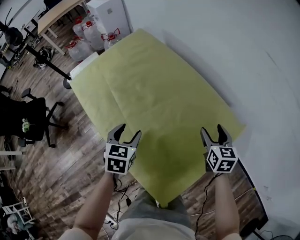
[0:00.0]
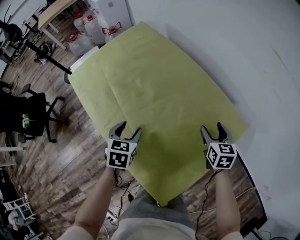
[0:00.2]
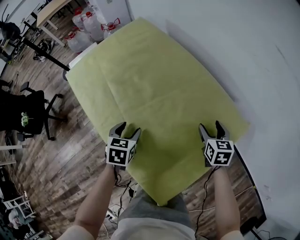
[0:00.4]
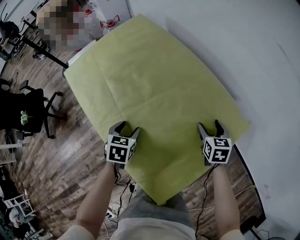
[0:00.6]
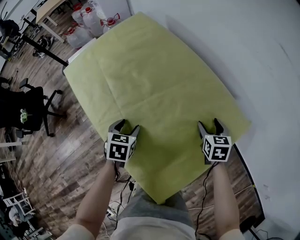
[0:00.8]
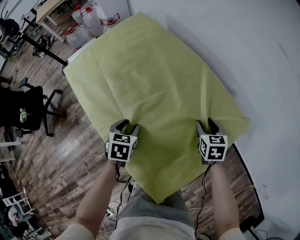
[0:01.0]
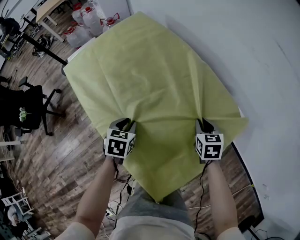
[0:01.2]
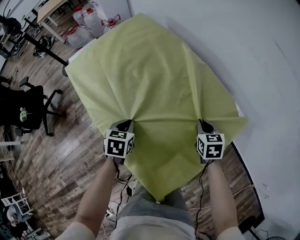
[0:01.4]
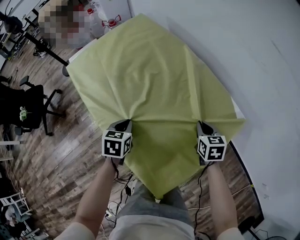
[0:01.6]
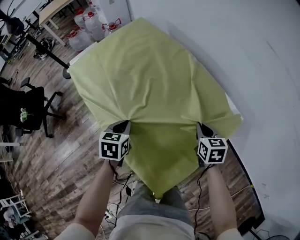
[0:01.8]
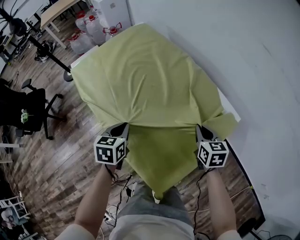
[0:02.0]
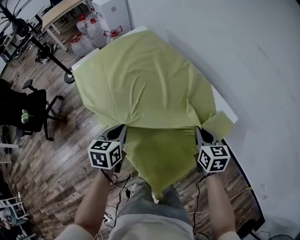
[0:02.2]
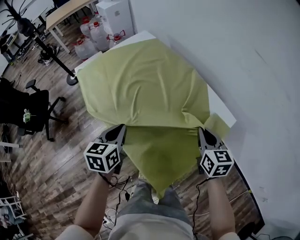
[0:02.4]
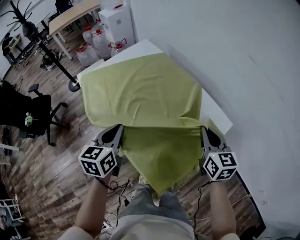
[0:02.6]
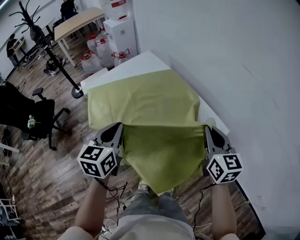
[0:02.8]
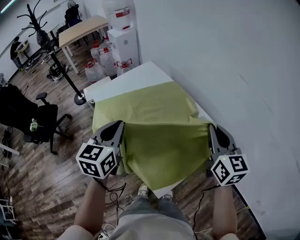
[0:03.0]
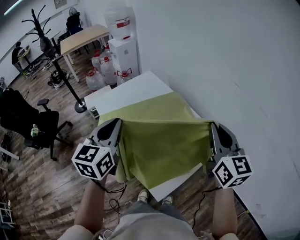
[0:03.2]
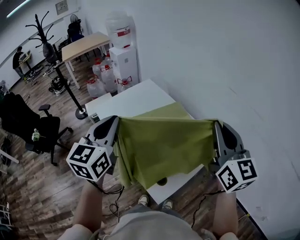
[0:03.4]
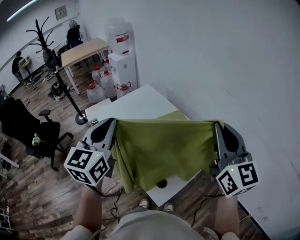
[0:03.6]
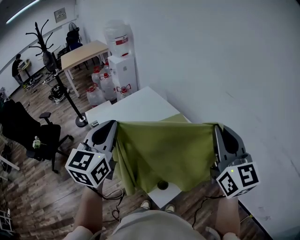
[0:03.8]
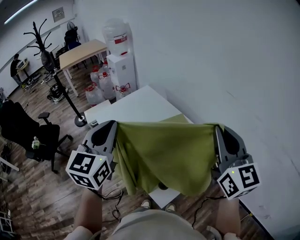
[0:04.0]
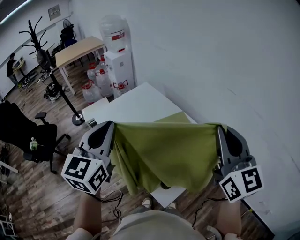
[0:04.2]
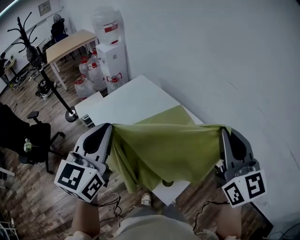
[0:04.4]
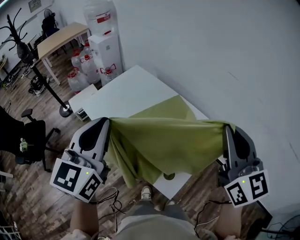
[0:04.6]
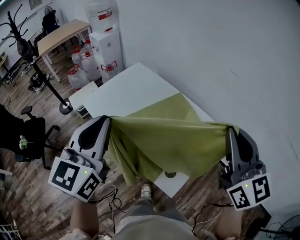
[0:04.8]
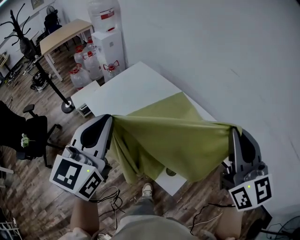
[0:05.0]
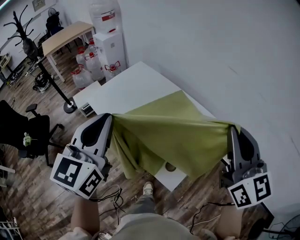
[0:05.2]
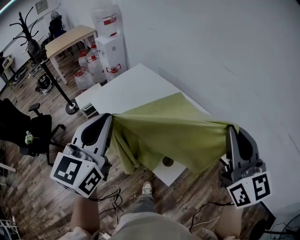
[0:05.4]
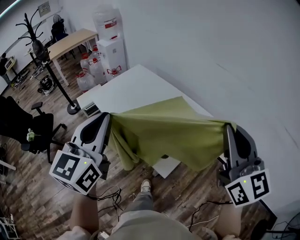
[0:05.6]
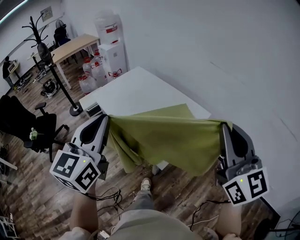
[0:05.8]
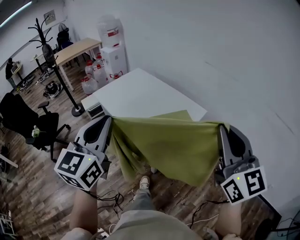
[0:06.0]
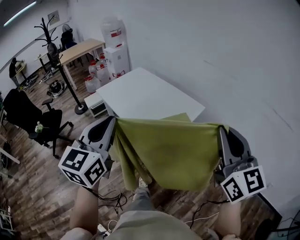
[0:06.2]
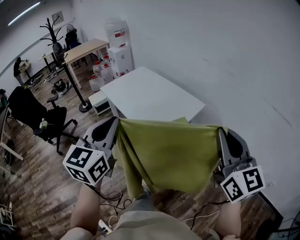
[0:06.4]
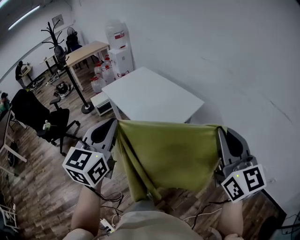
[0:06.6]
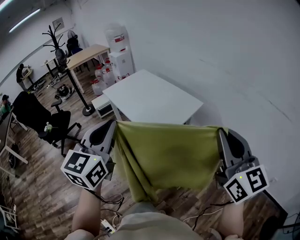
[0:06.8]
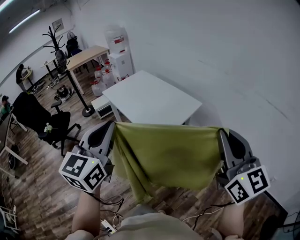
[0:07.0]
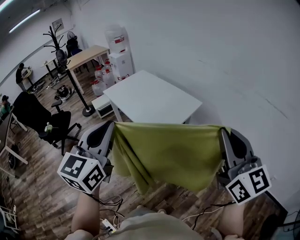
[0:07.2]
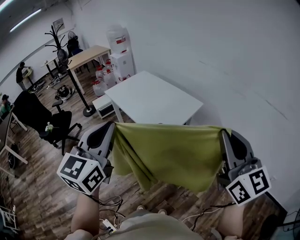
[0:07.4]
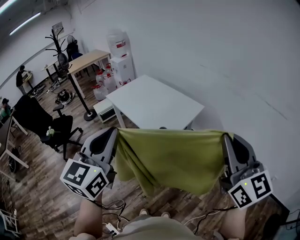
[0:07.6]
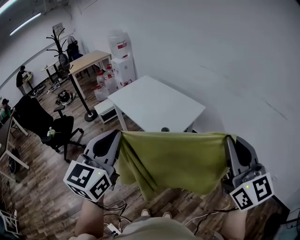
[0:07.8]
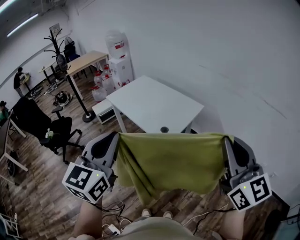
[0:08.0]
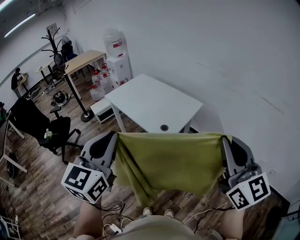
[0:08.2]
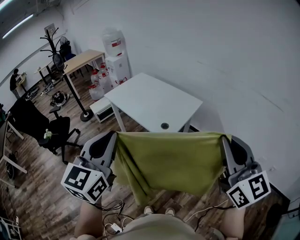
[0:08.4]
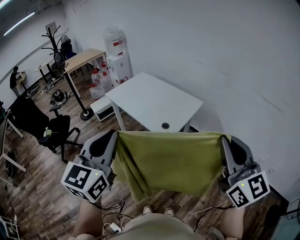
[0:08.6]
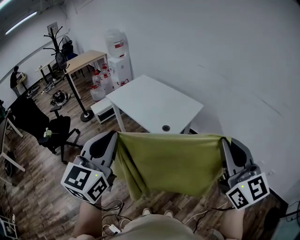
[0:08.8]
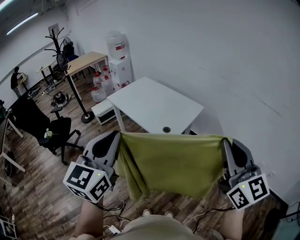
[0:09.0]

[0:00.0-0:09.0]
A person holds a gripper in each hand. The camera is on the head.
0:00.0 to 0:01.6: The two grippers go some 10 cm downward. The left gripper closes up; the right gripper closes.
0:01.6 to 0:03.0: The two grippers go some 35 cm upward. The left gripper tilts its fingers some 30 degrees upward. The right gripper tilts its fingers some 40 degrees upward.
0:03.0 to 0:04.4: The right gripper heads upward, to the left and backward, covering about 20 cm; the left gripper goes approximately 15 cm upward.
0:04.4 to 0:06.0: The two grippers go some 30 cm backward.
0:06.0 to 0:07.6: The grippers both shift backward by about 20 cm.
0:07.6 to 0:09.0: Both grippers travel together to the left, about 5 cm.

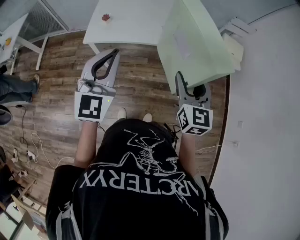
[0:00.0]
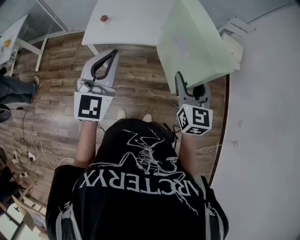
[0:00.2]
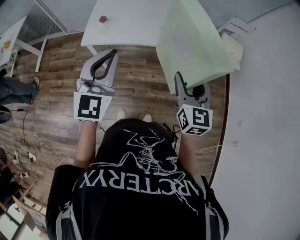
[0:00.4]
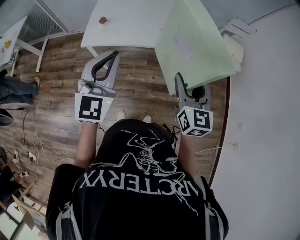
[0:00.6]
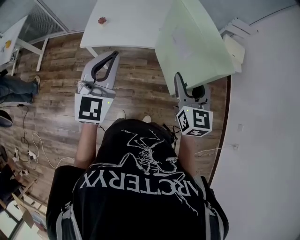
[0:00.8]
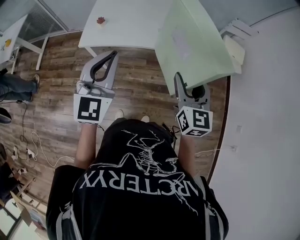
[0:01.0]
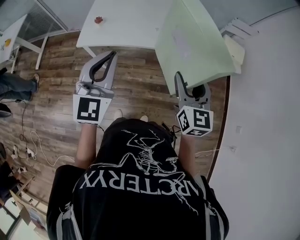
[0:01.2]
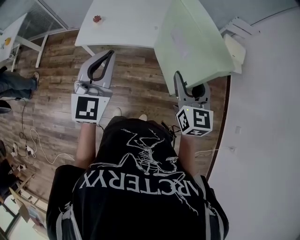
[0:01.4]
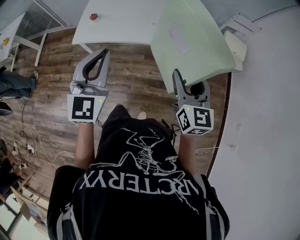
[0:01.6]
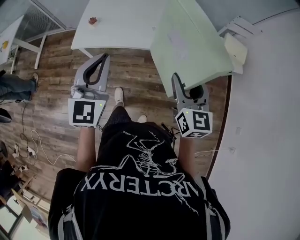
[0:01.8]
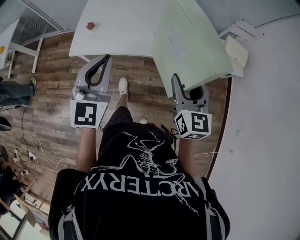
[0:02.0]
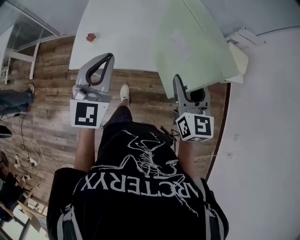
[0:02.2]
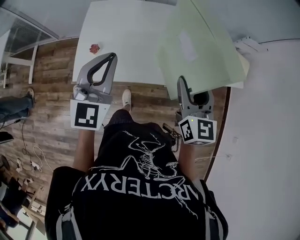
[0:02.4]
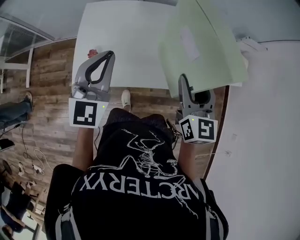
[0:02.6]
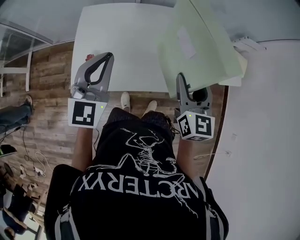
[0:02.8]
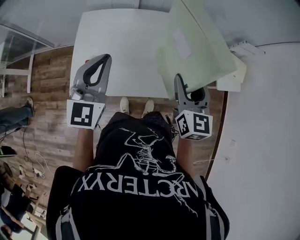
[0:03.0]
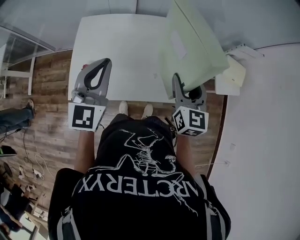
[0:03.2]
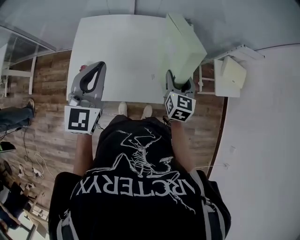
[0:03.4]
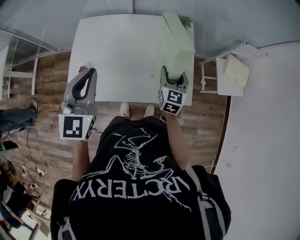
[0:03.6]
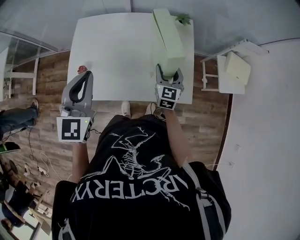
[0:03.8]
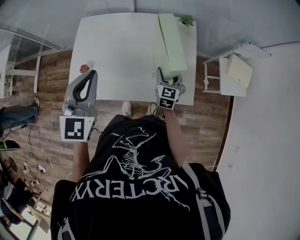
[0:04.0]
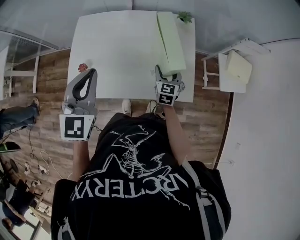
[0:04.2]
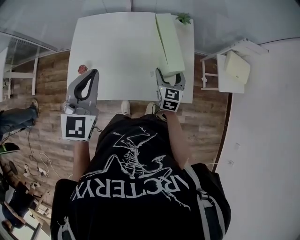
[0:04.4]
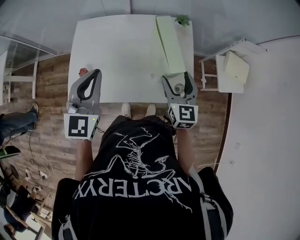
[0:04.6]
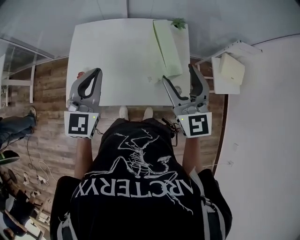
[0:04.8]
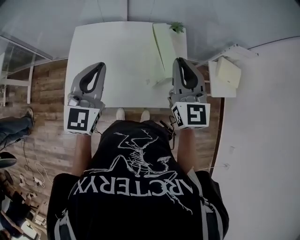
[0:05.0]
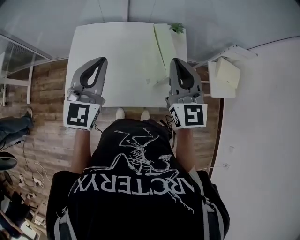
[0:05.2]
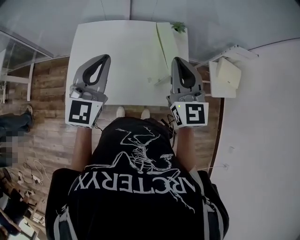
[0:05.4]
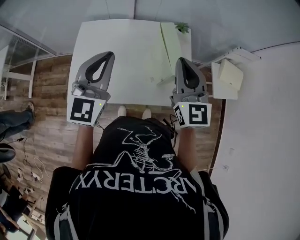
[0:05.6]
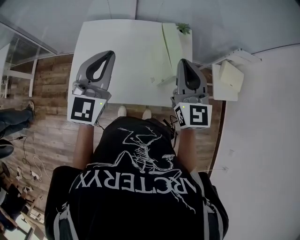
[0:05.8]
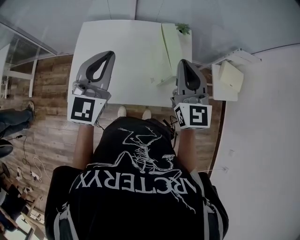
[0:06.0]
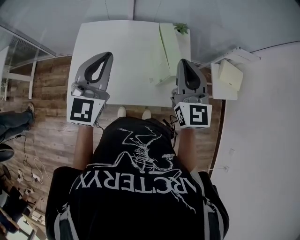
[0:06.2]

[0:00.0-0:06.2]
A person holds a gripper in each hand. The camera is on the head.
0:00.0 to 0:01.6: Both grippers travel together to the right and forward, approximately 10 cm.
0:01.6 to 0:03.2: The grippers both shift forward by some 35 cm.
0:03.2 to 0:04.6: The right gripper goes downward and returns, roughly 20 cm each way.
0:04.6 to 0:06.2: The right gripper travels upward by about 15 cm, and closes its fingers, while the left gripper changes place by some 5 cm.

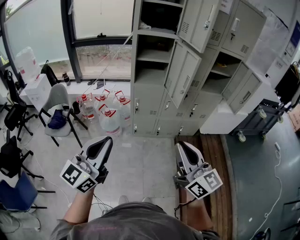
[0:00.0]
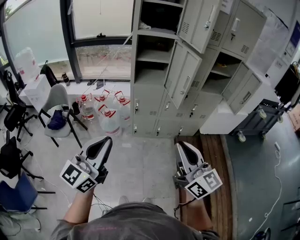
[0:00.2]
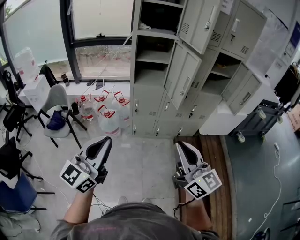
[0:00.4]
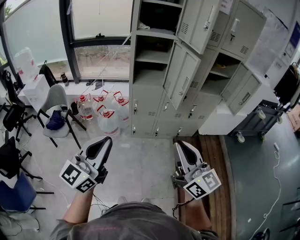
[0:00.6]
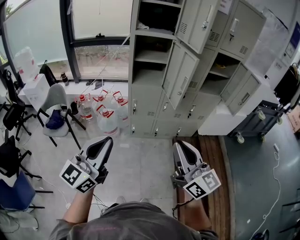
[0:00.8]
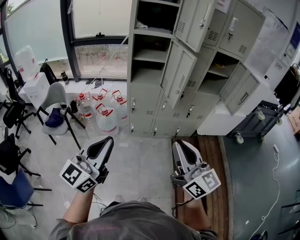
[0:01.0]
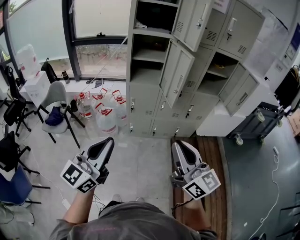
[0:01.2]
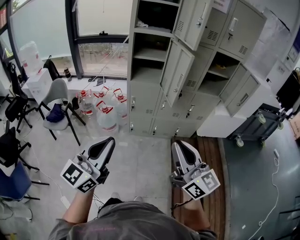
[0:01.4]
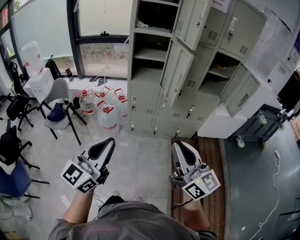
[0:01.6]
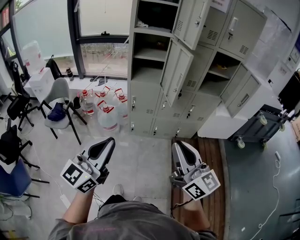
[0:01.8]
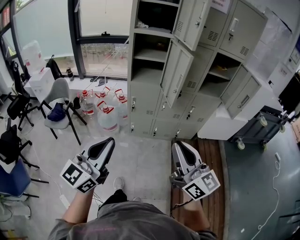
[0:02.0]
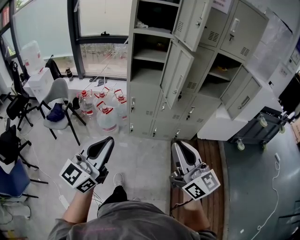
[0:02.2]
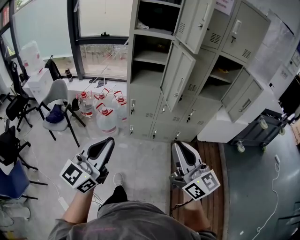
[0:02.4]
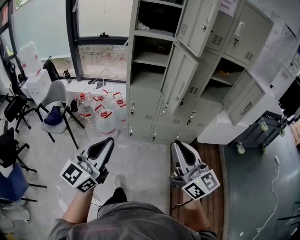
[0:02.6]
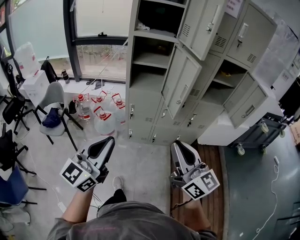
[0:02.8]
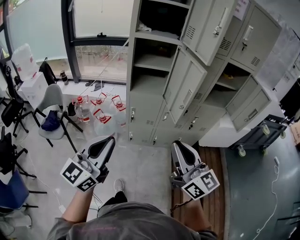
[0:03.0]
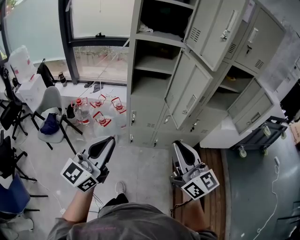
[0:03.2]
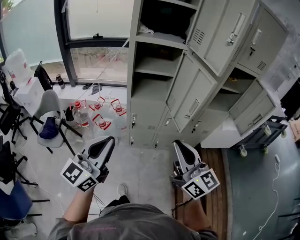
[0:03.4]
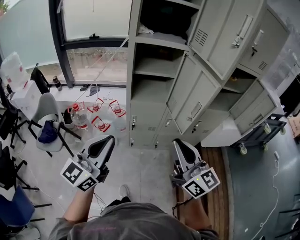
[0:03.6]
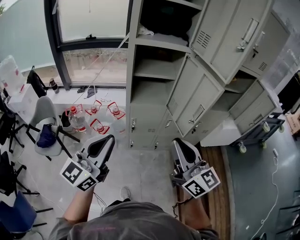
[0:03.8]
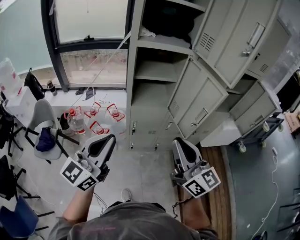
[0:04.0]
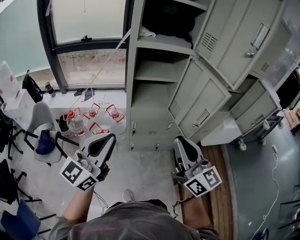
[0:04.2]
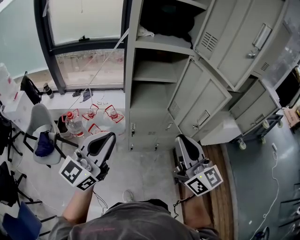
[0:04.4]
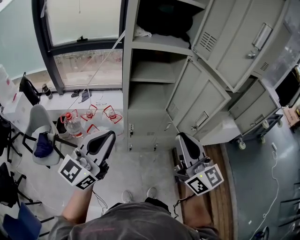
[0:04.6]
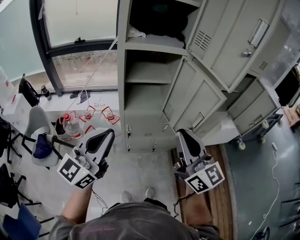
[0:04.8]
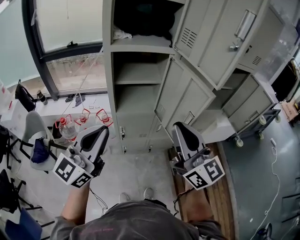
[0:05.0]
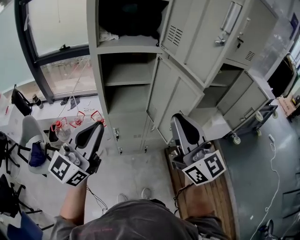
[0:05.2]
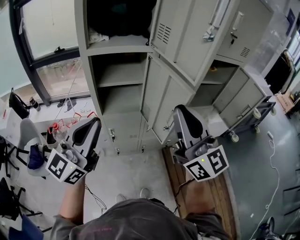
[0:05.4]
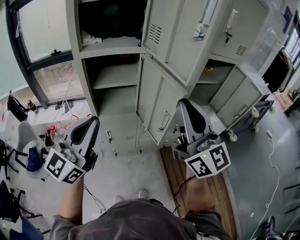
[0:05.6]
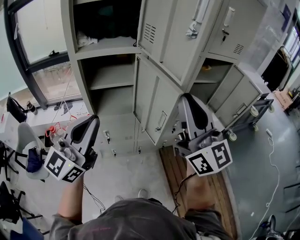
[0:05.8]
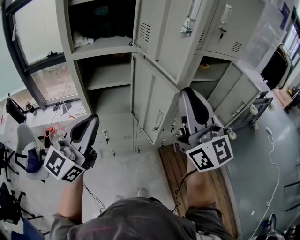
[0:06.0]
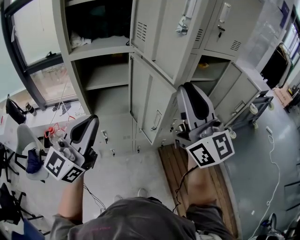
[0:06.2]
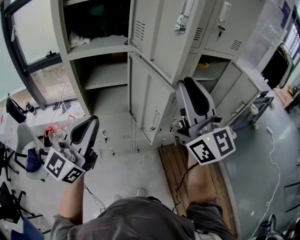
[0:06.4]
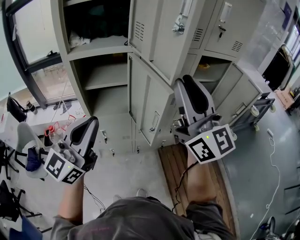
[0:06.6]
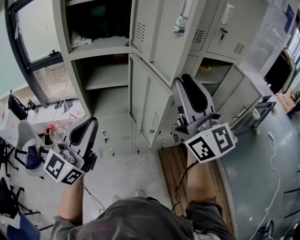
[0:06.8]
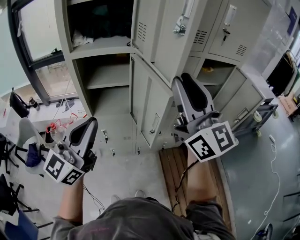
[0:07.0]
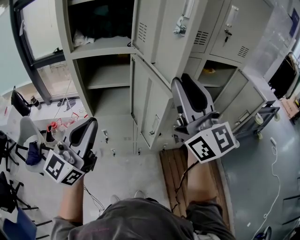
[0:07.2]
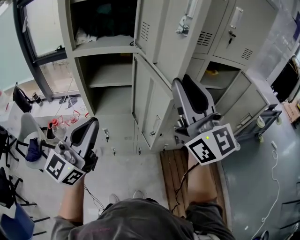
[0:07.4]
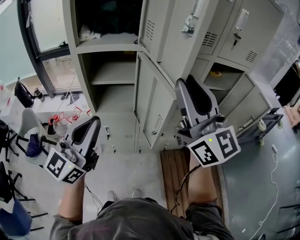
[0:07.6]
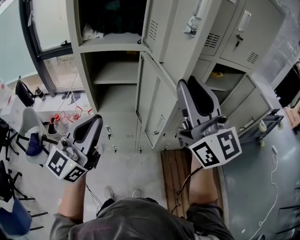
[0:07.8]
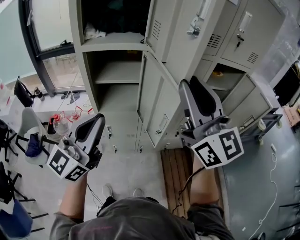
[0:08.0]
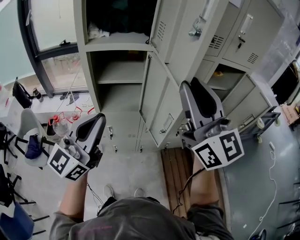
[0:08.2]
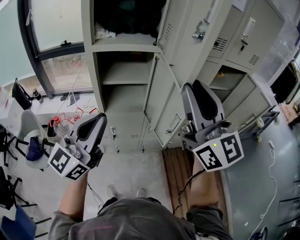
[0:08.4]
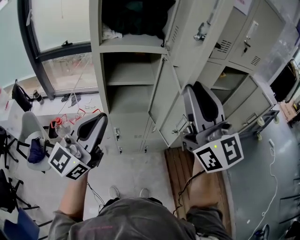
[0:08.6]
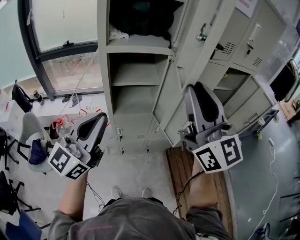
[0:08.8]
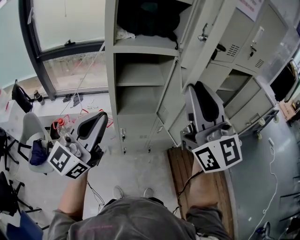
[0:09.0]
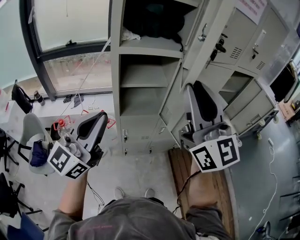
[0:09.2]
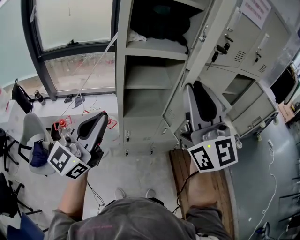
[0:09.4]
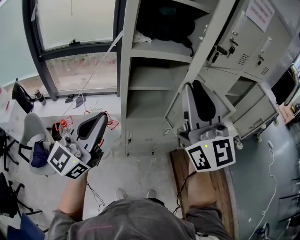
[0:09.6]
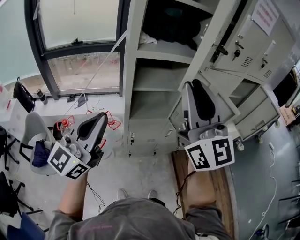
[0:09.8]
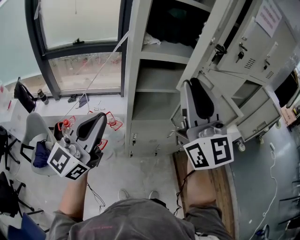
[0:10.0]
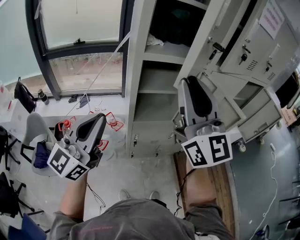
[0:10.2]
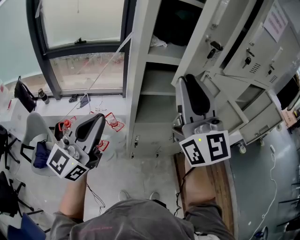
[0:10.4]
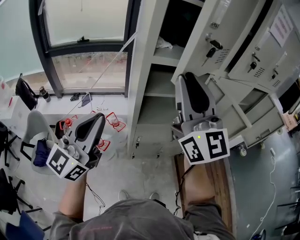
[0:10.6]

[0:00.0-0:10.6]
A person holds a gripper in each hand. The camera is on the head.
0:00.0 to 0:01.6: The grippers both shift to the right by some 10 cm.
0:01.6 to 0:03.0: The grippers both shift forward by roughly 15 cm.
0:03.0 to 0:04.6: The grippers both shift forward and to the left by some 20 cm.
0:04.6 to 0:06.0: Both grippers travel together to the right, upward and forward, approximately 20 cm.
0:06.0 to 0:07.6: The grippers stay close to where they were, moving slightly.
0:07.6 to 0:09.0: Both grippers travel together to the left, approximately 15 cm.
0:09.0 to 0:10.6: The left gripper moves to the left, some 15 cm. Meanwhile the right gripper heads to the left and forward, covering about 20 cm.
